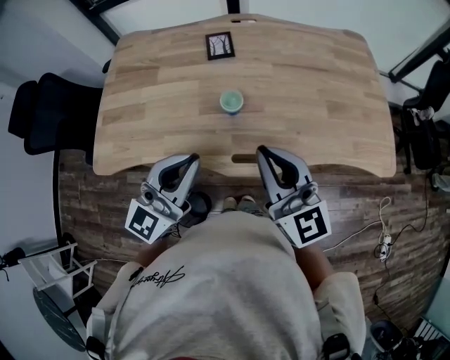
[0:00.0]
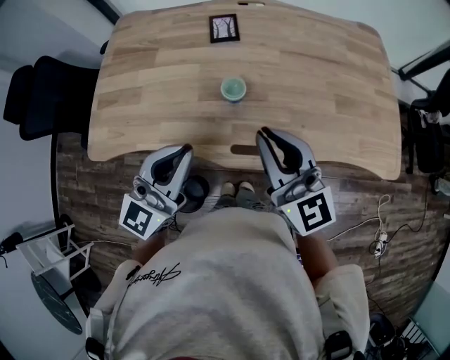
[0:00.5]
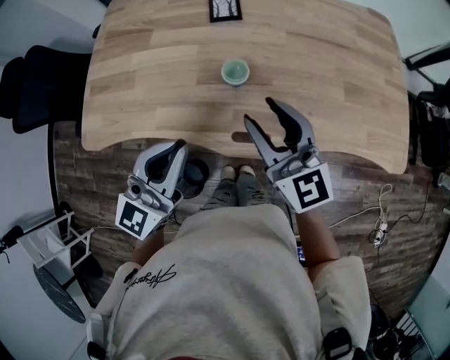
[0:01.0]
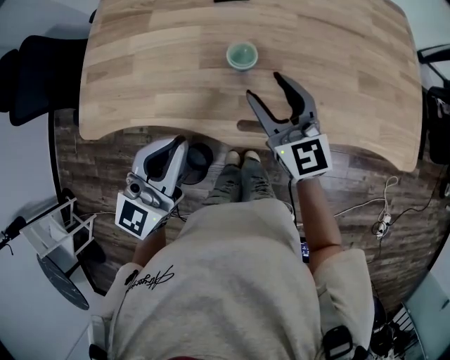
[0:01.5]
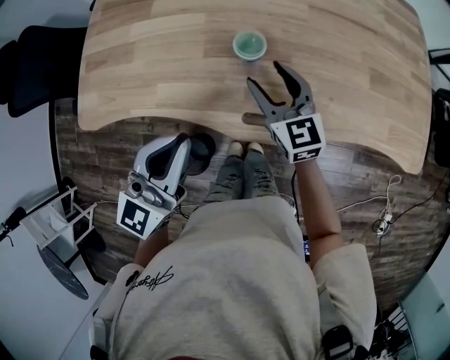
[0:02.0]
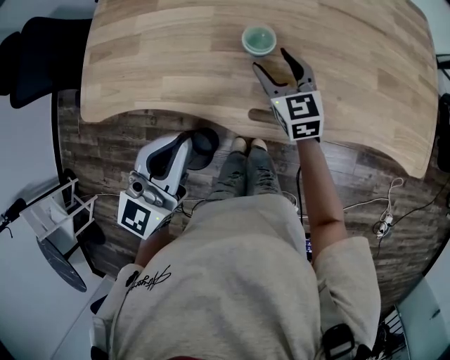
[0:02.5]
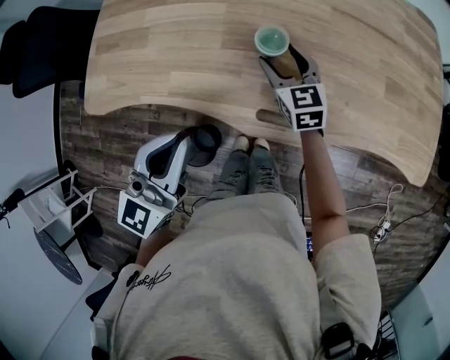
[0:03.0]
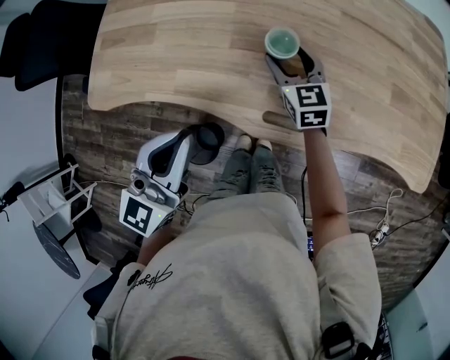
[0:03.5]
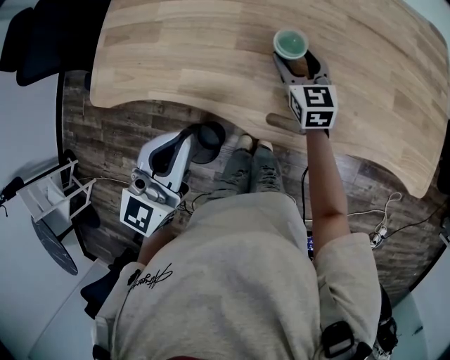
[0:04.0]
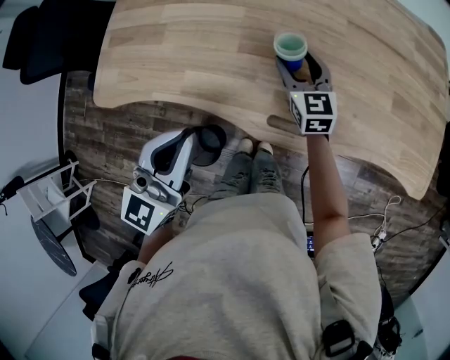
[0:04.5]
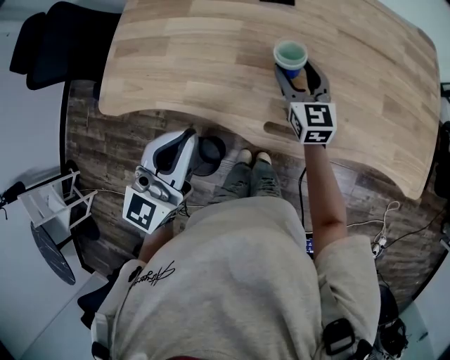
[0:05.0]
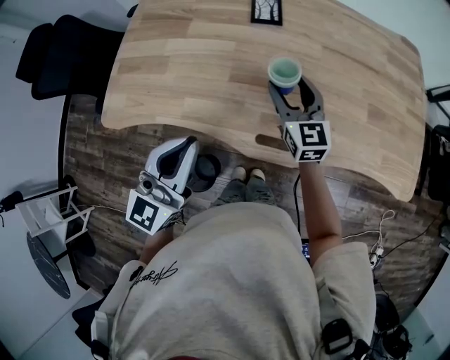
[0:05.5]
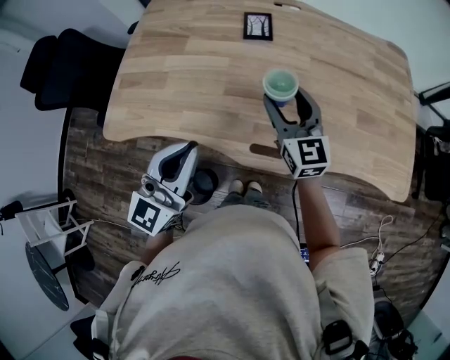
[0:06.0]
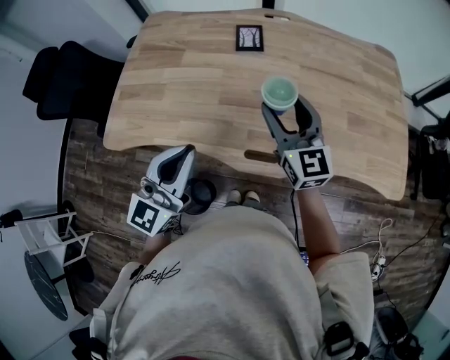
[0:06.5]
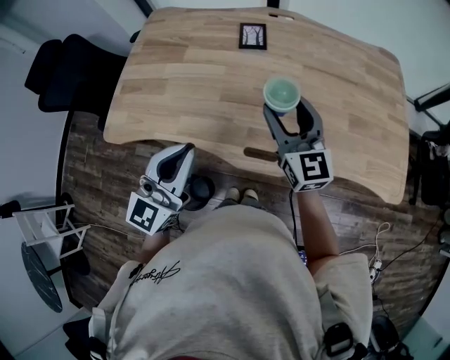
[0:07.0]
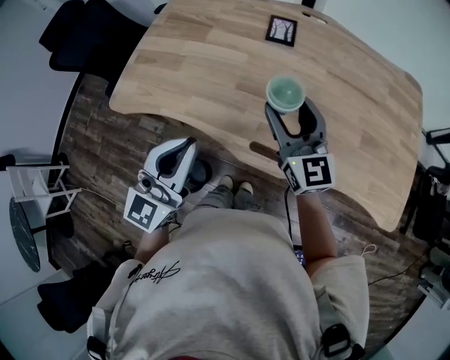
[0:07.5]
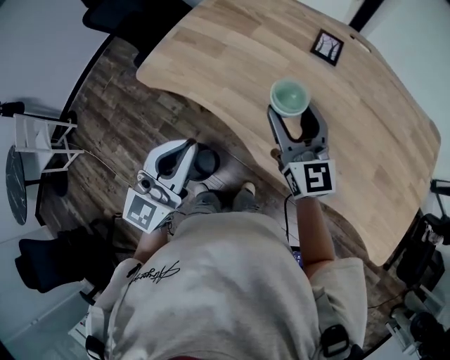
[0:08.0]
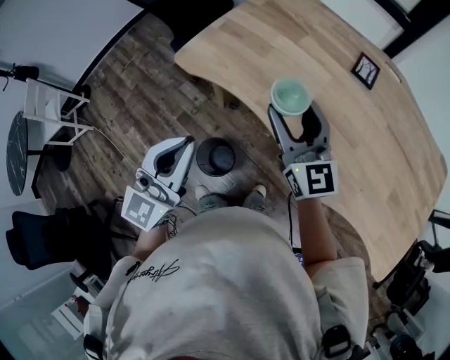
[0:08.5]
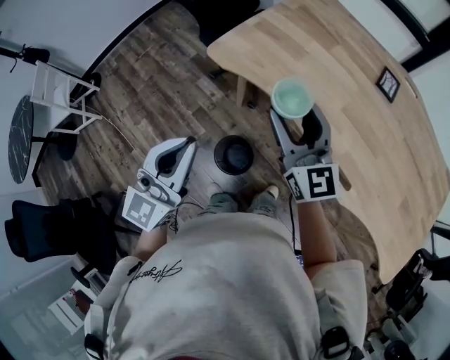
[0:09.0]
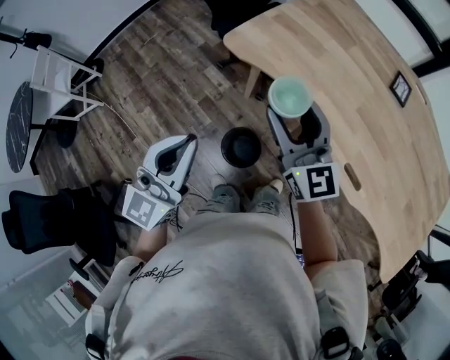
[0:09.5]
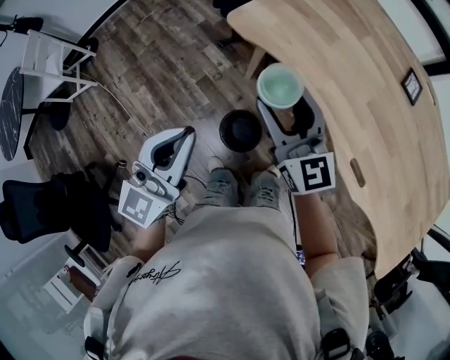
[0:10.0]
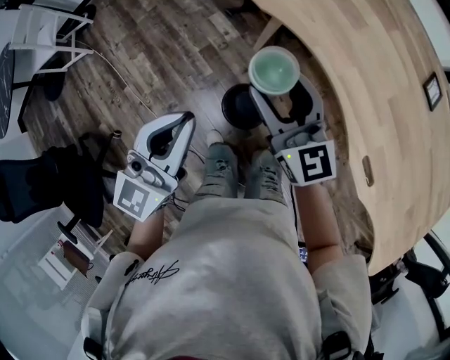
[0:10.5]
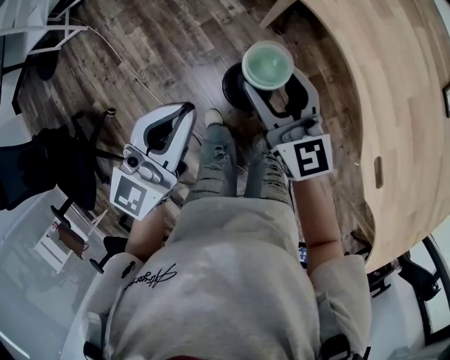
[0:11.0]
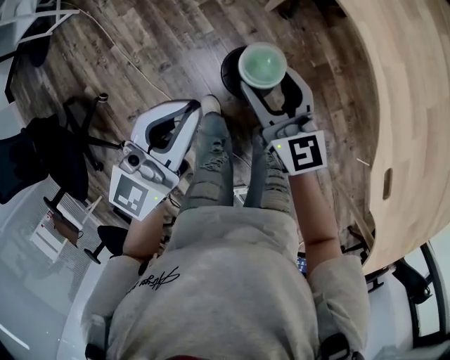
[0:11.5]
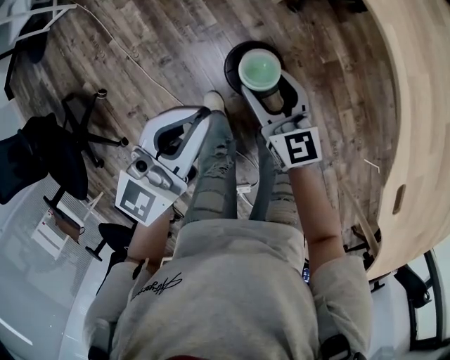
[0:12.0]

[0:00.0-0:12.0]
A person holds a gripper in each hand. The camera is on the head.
0:00.0 to 0:02.0: The right gripper goes some 25 cm downward and forward, swivels approximately 20 degrees, and opens its fingers, while the left gripper heads downward, covering about 10 cm.
0:02.0 to 0:04.0: The right gripper heads forward and downward, covering about 10 cm.
0:04.0 to 0:06.0: The left gripper travels upward by some 5 cm, while the right gripper goes roughly 20 cm upward.
0:06.0 to 0:08.0: The right gripper shifts approximately 10 cm to the left, and turns by some 30 degrees, while the left gripper is displaced backward and to the left by some 10 cm, and turns by roughly 20 degrees.
0:08.0 to 0:10.0: The two grippers go roughly 30 cm to the left. The right gripper turns by some 20 degrees.
0:10.0 to 0:12.0: The left gripper heads downward, covering roughly 20 cm. Meanwhile the right gripper goes roughly 35 cm downward, and rotates about 30 degrees.

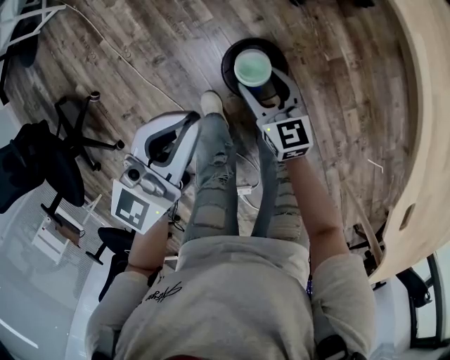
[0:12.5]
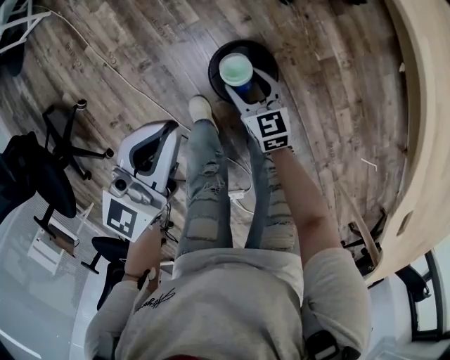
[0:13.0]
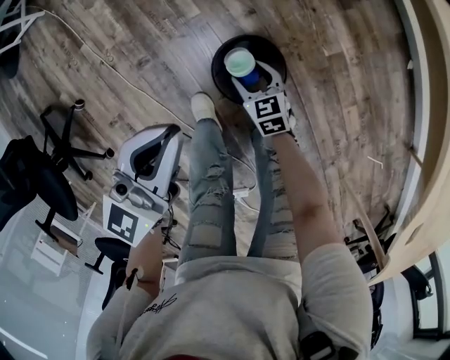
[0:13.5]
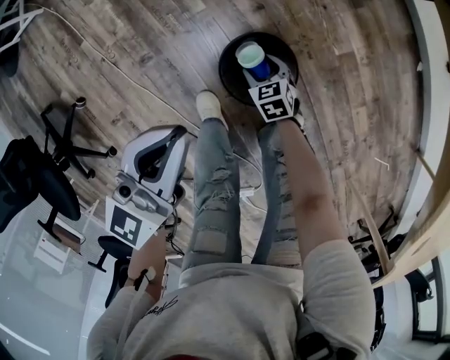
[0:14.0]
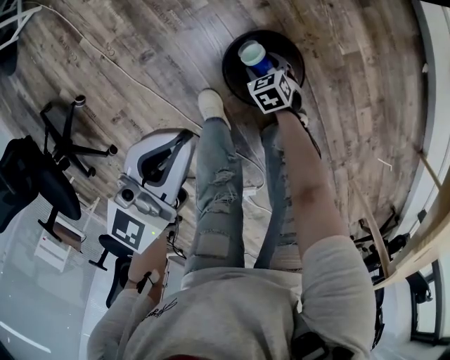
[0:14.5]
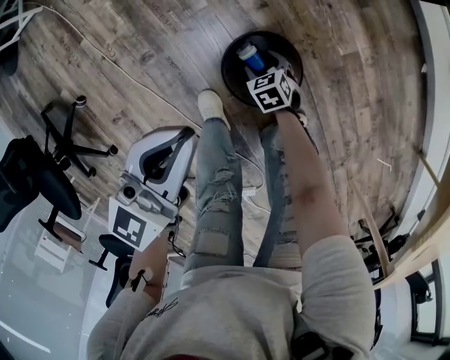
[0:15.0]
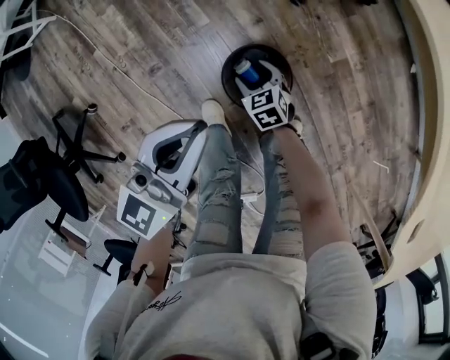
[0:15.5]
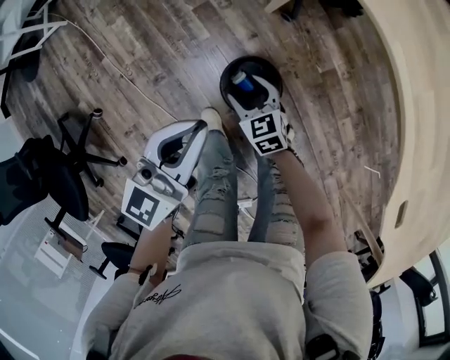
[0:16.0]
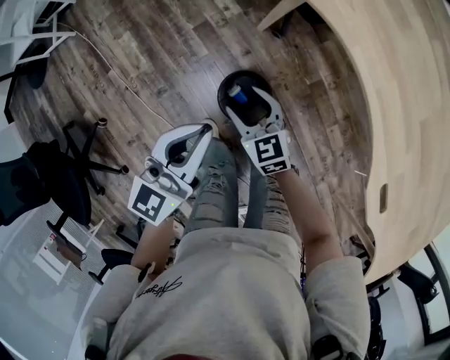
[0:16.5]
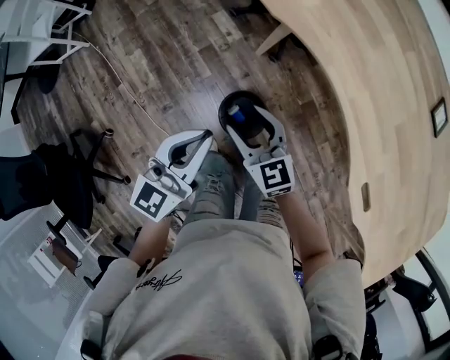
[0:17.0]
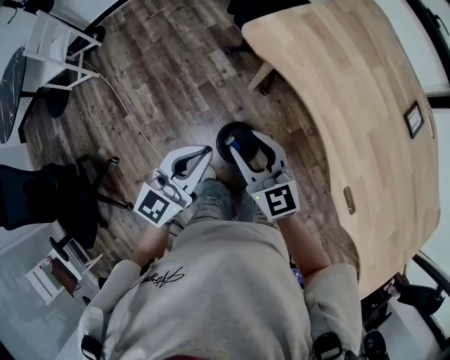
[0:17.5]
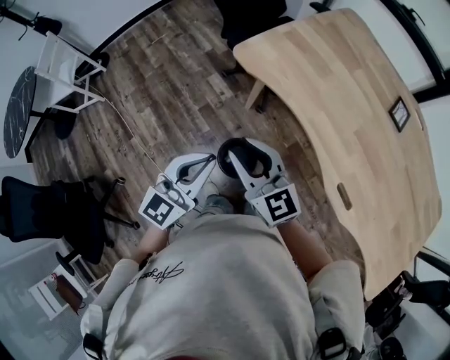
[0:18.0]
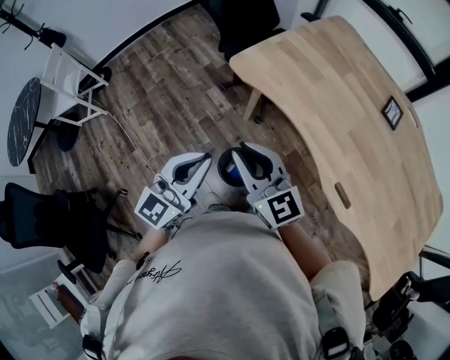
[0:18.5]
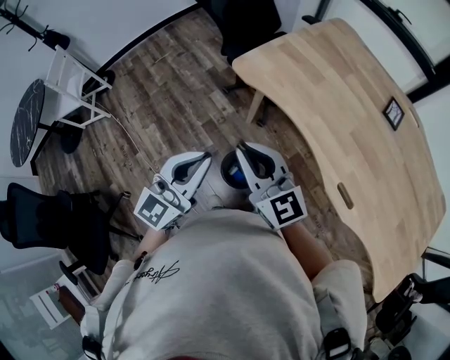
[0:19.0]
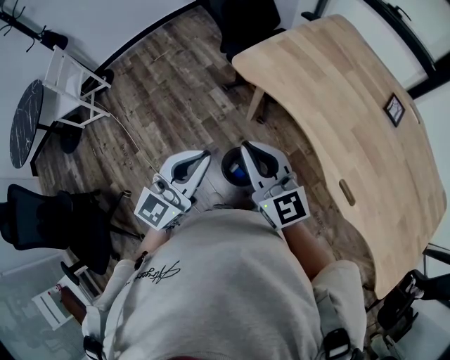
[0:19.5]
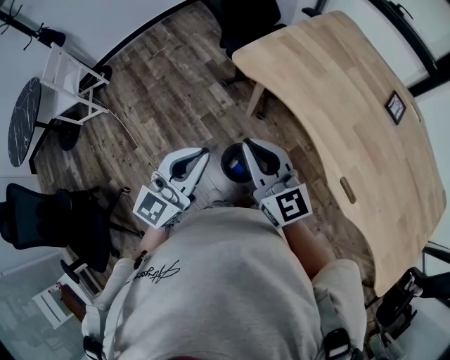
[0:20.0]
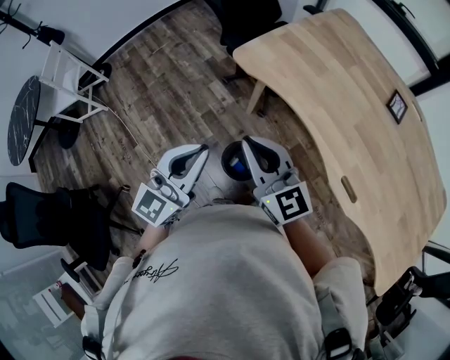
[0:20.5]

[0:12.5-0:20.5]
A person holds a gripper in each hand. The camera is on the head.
0:12.5 to 0:14.5: The left gripper travels downward by roughly 10 cm, while the right gripper heads downward, covering about 30 cm, and tilts its fingers roughly 40 degrees downward.
0:14.5 to 0:16.5: The right gripper goes about 40 cm upward, and points its fingers approximately 30 degrees further upward. The left gripper shifts some 15 cm upward.
0:16.5 to 0:18.5: The right gripper shifts roughly 40 cm upward, swivels some 30 degrees, and closes up. The left gripper shifts roughly 20 cm upward.
0:18.5 to 0:20.5: The grippers make only small movements.

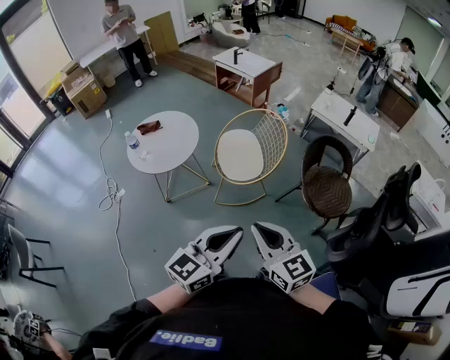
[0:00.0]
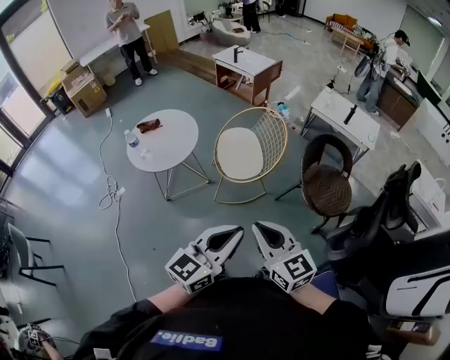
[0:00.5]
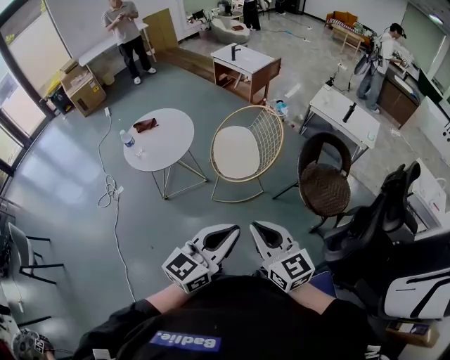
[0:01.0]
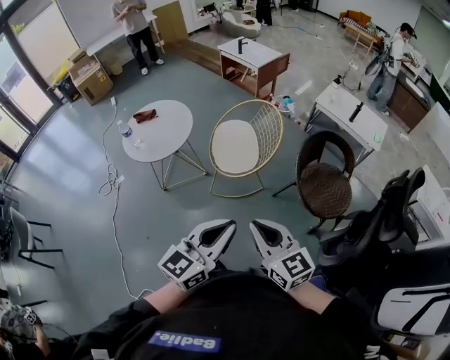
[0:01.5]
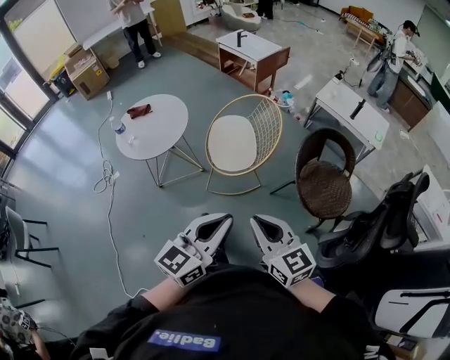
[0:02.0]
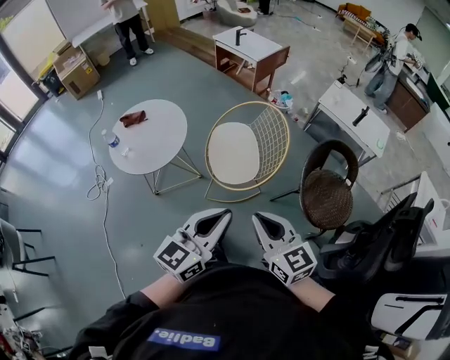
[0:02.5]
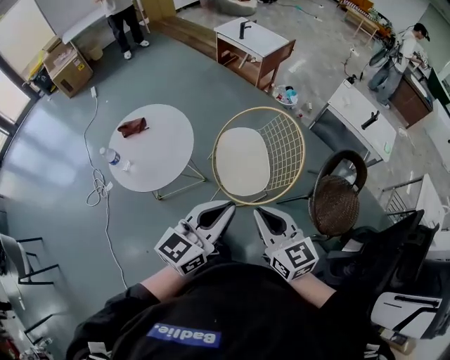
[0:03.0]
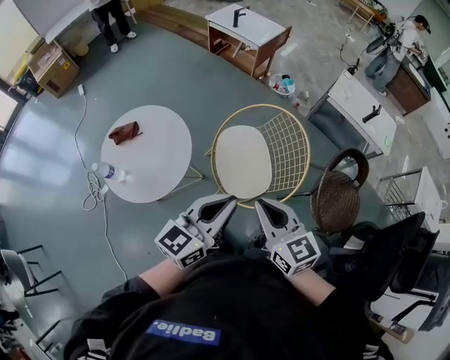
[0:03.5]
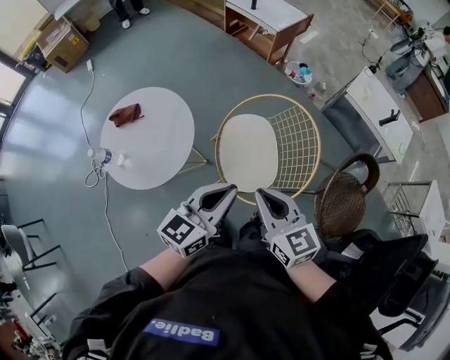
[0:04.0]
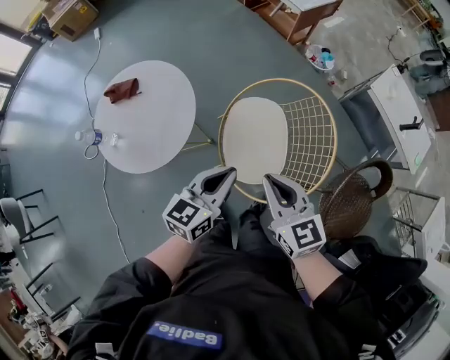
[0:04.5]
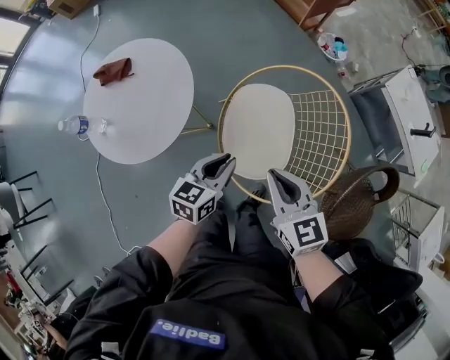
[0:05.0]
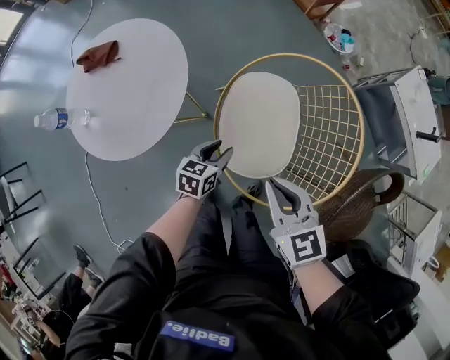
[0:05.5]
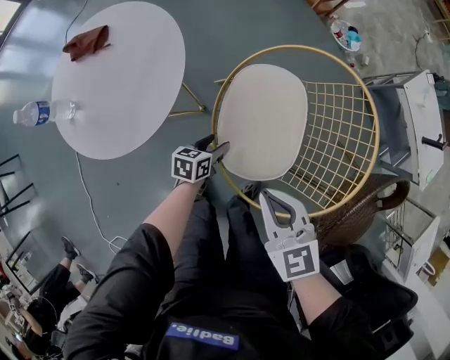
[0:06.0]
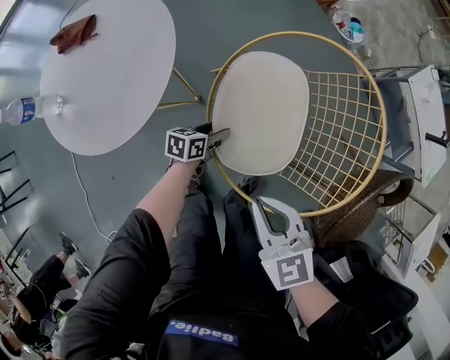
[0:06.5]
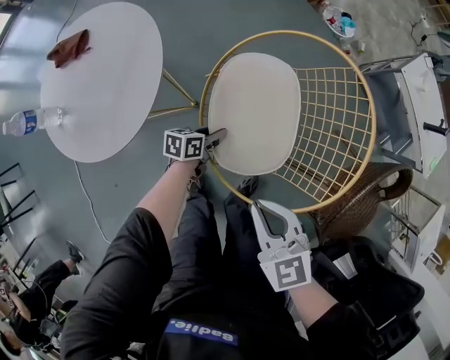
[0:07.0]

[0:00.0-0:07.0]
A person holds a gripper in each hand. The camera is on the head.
0:00.0 to 0:02.0: The left gripper is displaced forward and to the right by roughly 10 cm. Meanwhile the right gripper travels to the right and forward by approximately 10 cm.
0:02.0 to 0:03.5: Both grippers travel together forward and to the left, some 35 cm.
0:03.5 to 0:05.0: The right gripper goes approximately 20 cm downward and forward. The left gripper heads downward, covering roughly 25 cm, and turns by about 30 degrees.
0:05.0 to 0:07.0: The left gripper goes some 30 cm downward, swivels some 30 degrees, and opens, then closes again. The right gripper moves downward and backward, approximately 15 cm.
